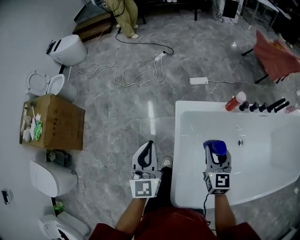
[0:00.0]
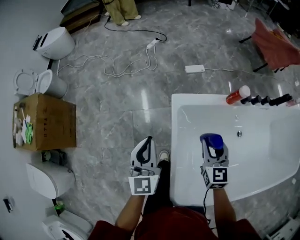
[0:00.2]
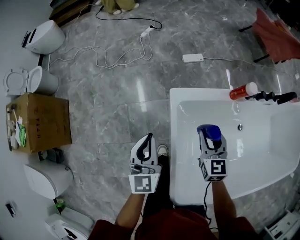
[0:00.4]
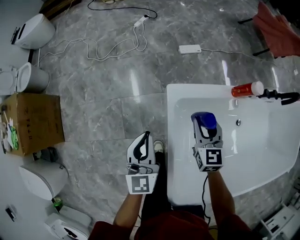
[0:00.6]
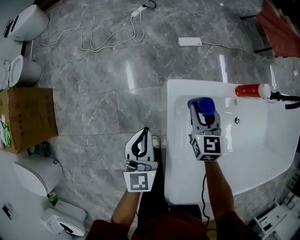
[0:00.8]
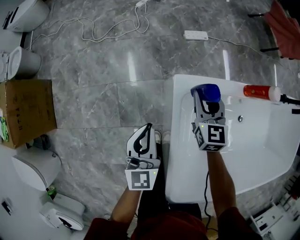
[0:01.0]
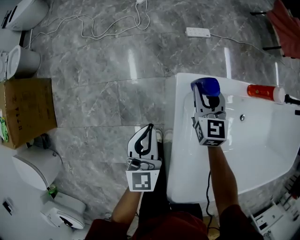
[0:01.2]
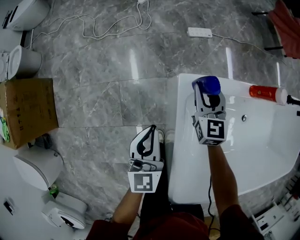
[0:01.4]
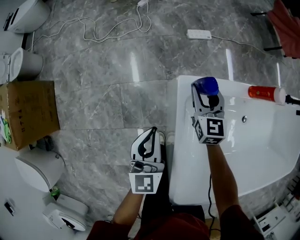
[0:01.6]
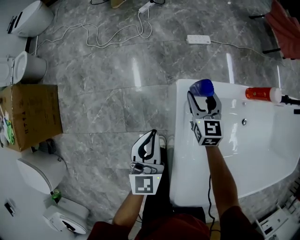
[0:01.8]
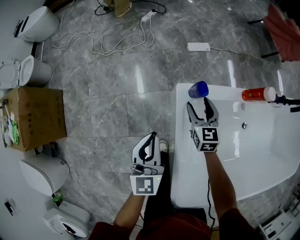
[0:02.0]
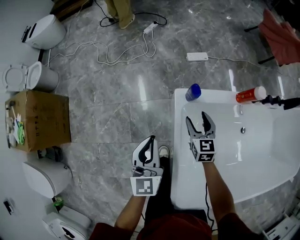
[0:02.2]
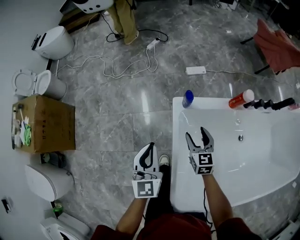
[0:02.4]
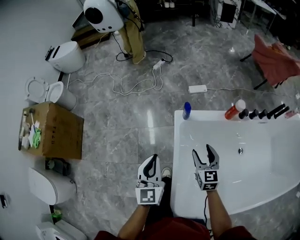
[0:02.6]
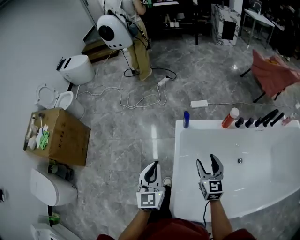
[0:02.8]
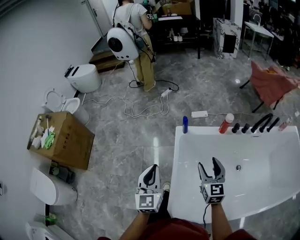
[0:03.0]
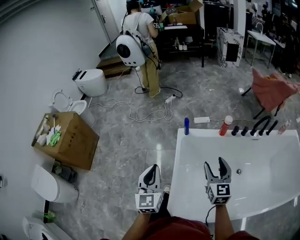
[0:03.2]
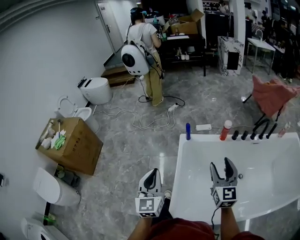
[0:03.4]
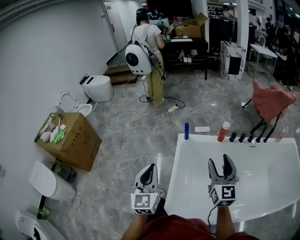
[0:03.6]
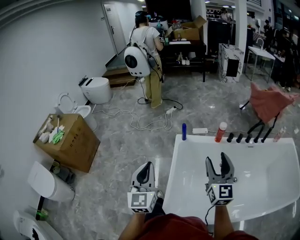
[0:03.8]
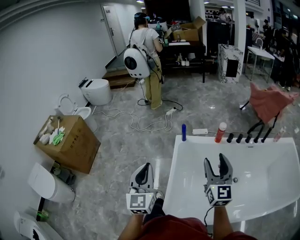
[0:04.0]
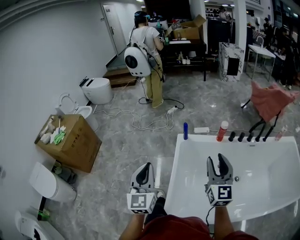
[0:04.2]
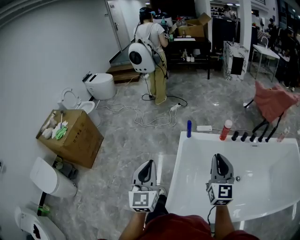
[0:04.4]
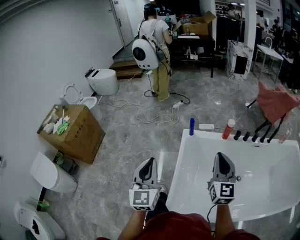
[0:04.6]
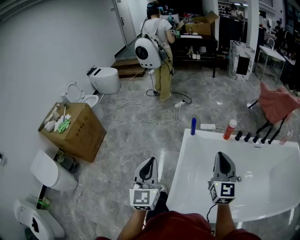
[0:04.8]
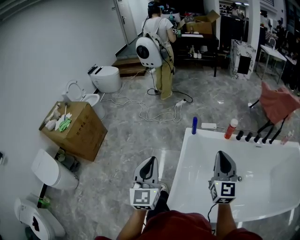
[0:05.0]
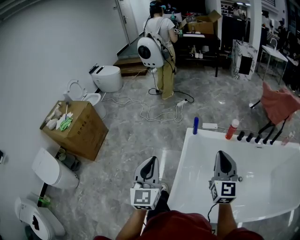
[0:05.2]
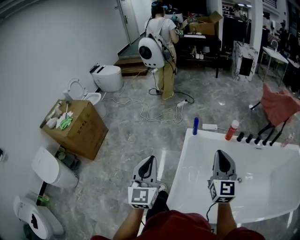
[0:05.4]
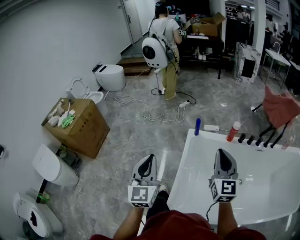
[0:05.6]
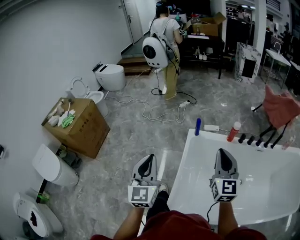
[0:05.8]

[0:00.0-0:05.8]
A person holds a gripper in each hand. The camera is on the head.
0:00.0 to 0:01.4: The left gripper moves downward and forward, roughly 30 cm. The right gripper heads forward and downward, covering about 35 cm.
0:01.4 to 0:02.8: The left gripper moves upward and backward, roughly 30 cm, while the right gripper travels backward and upward by roughly 35 cm, and opens up.
0:02.8 to 0:04.4: The right gripper moves upward and backward, some 25 cm, changes its angle by roughly 20 degrees, and closes; the left gripper shifts about 25 cm backward and upward.
0:04.4 to 0:05.8: There are only small adjustments of the grippers.

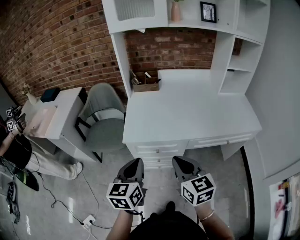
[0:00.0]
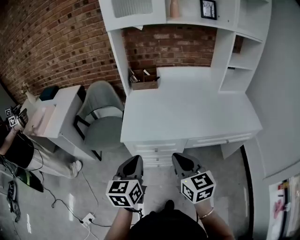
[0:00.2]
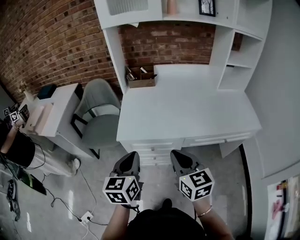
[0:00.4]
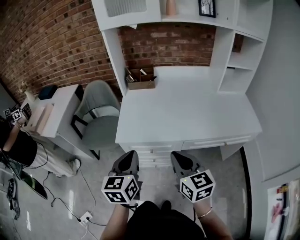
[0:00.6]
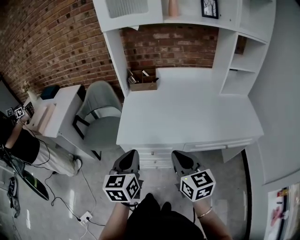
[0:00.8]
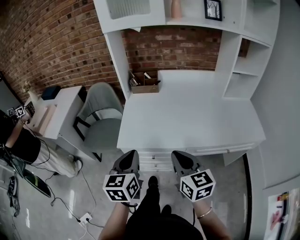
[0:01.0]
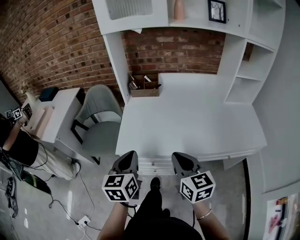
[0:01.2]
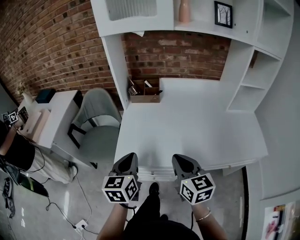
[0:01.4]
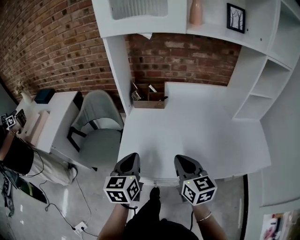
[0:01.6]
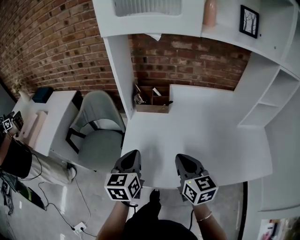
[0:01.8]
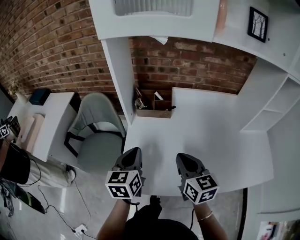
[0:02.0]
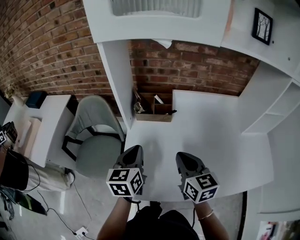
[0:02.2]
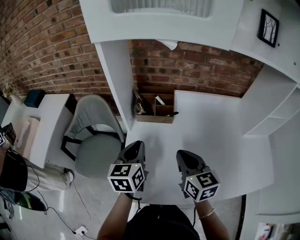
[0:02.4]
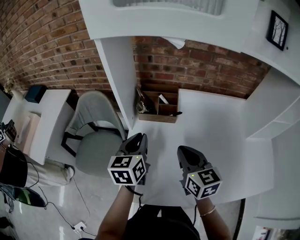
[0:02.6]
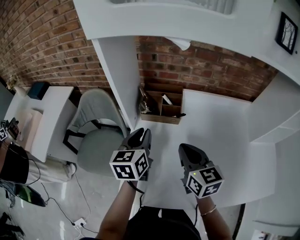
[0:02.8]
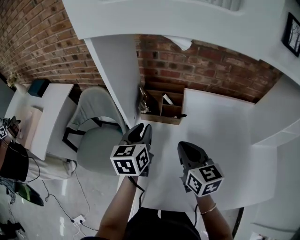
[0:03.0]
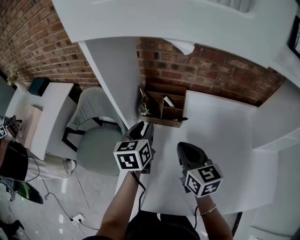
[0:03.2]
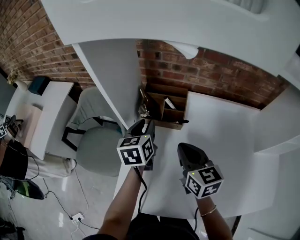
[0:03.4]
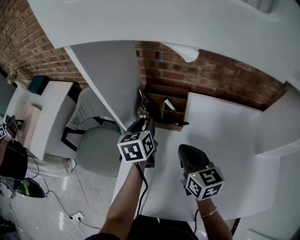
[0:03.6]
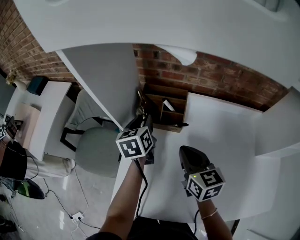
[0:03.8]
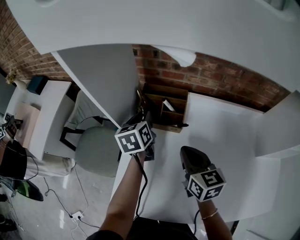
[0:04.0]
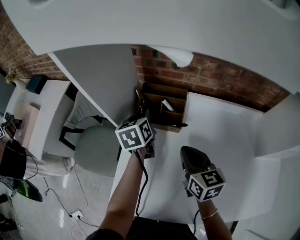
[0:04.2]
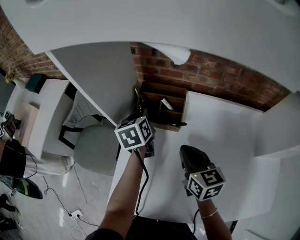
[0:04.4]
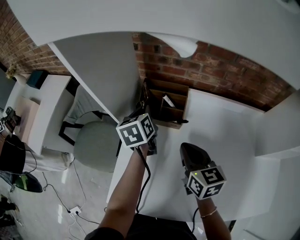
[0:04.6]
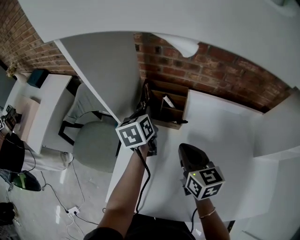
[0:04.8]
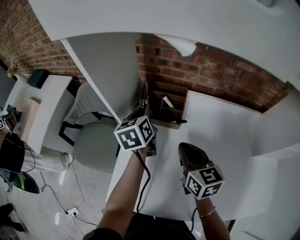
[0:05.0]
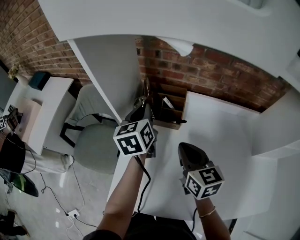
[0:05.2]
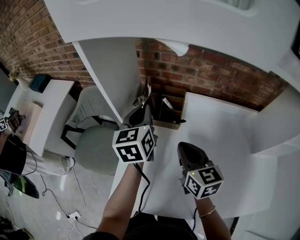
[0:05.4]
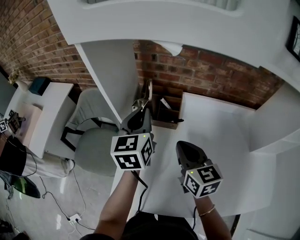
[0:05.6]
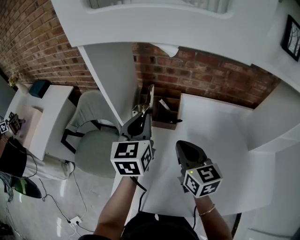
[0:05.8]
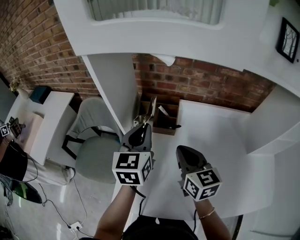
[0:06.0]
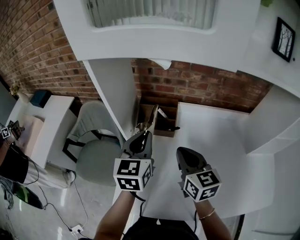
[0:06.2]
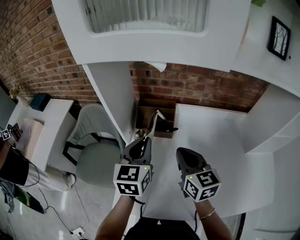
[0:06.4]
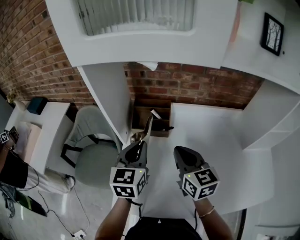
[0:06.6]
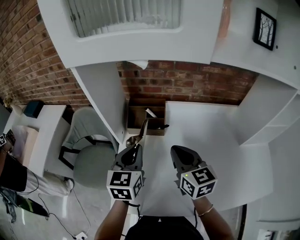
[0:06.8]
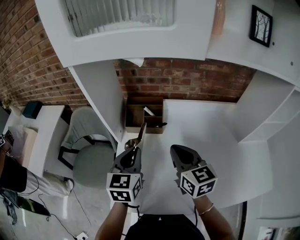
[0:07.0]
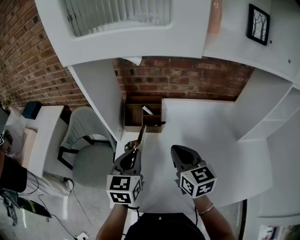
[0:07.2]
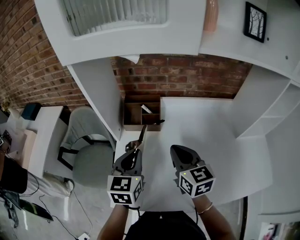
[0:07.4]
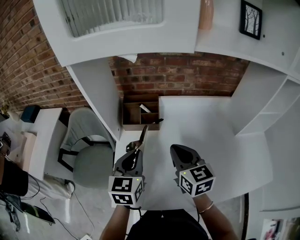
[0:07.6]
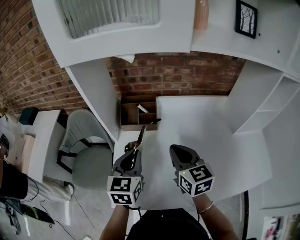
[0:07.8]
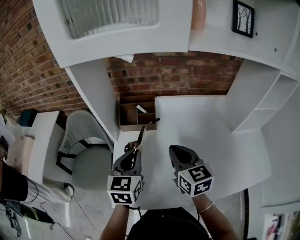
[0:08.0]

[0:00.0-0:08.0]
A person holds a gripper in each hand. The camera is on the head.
0:00.0 to 0:01.6: Both grippers move forward, about 25 cm.
0:01.6 to 0:03.2: The grippers both shift forward by approximately 30 cm. The left gripper opens.
0:03.2 to 0:04.8: The left gripper moves forward, approximately 10 cm.
0:04.8 to 0:06.4: The right gripper travels upward by roughly 5 cm. The left gripper travels backward and upward by roughly 20 cm, and changes its angle by some 30 degrees.
0:06.4 to 0:08.0: Both grippers move backward, some 5 cm.

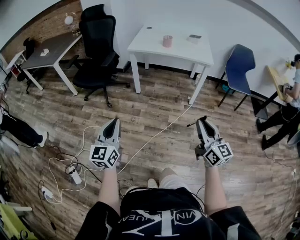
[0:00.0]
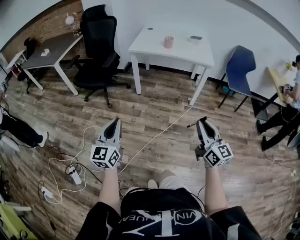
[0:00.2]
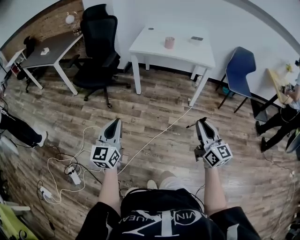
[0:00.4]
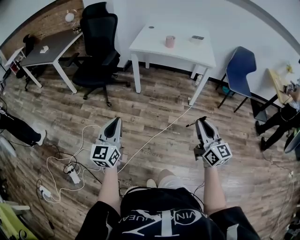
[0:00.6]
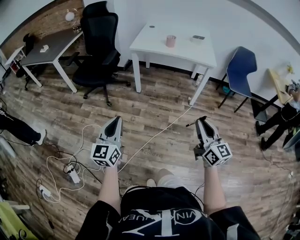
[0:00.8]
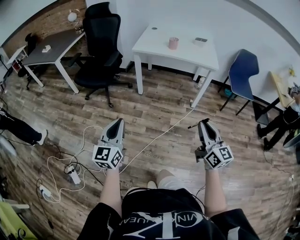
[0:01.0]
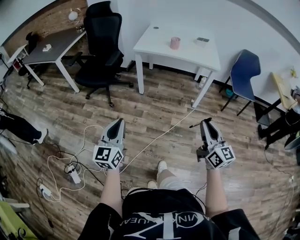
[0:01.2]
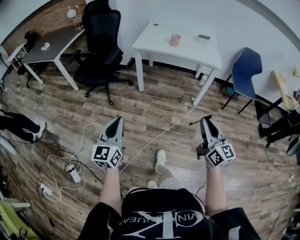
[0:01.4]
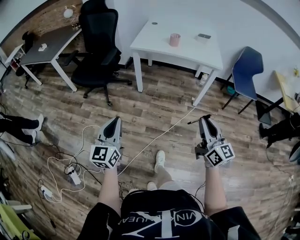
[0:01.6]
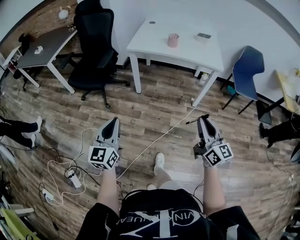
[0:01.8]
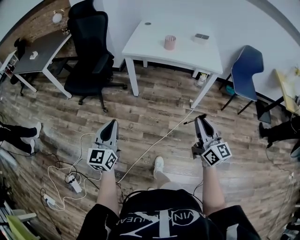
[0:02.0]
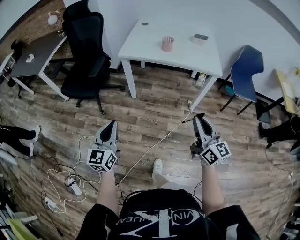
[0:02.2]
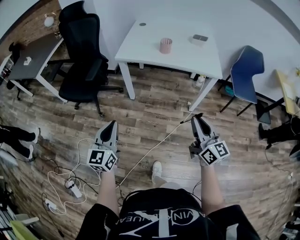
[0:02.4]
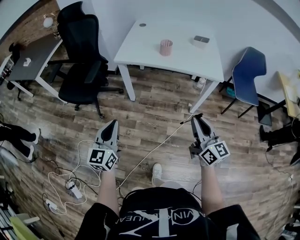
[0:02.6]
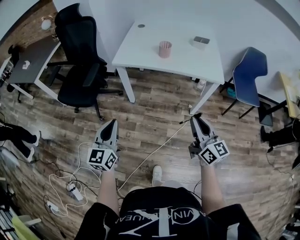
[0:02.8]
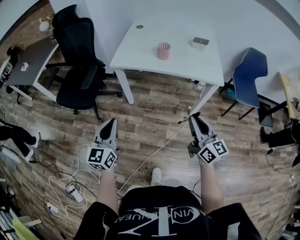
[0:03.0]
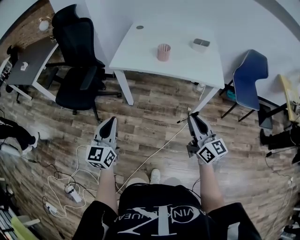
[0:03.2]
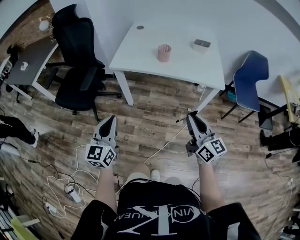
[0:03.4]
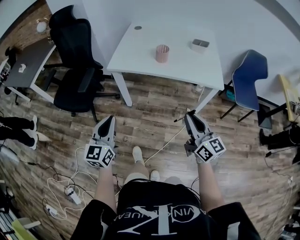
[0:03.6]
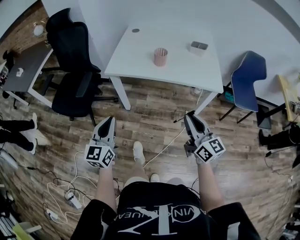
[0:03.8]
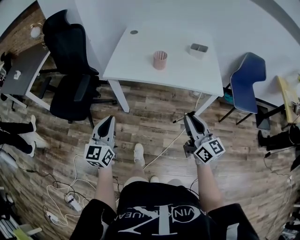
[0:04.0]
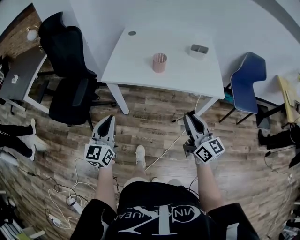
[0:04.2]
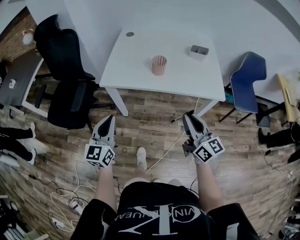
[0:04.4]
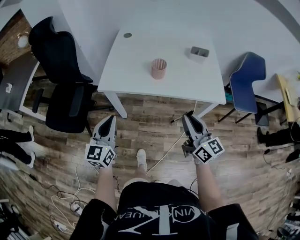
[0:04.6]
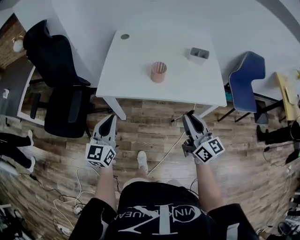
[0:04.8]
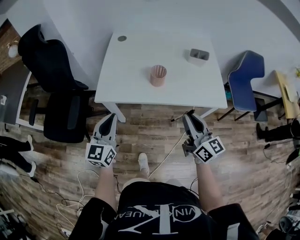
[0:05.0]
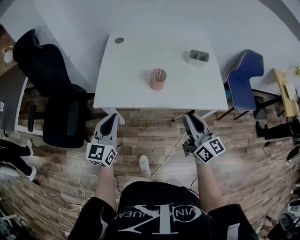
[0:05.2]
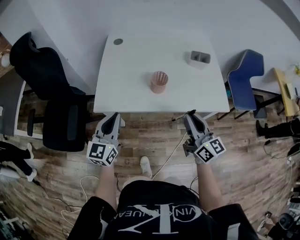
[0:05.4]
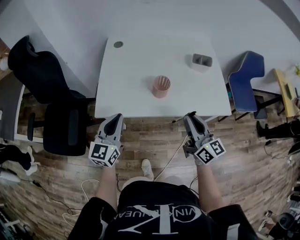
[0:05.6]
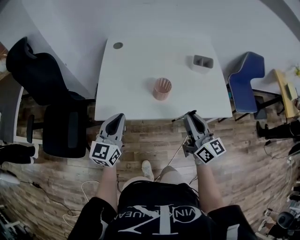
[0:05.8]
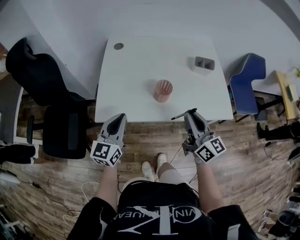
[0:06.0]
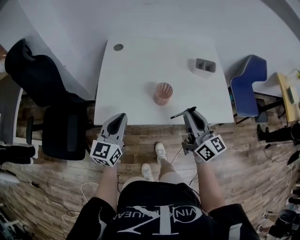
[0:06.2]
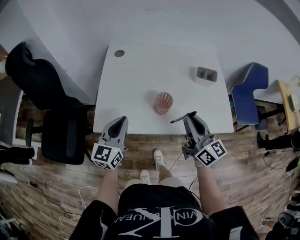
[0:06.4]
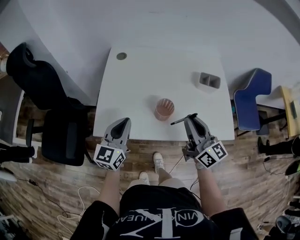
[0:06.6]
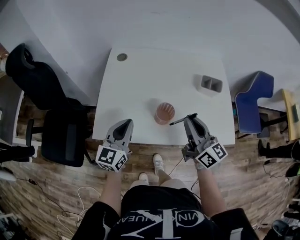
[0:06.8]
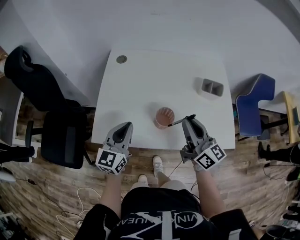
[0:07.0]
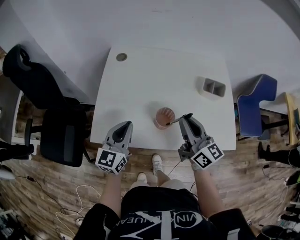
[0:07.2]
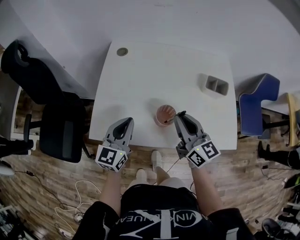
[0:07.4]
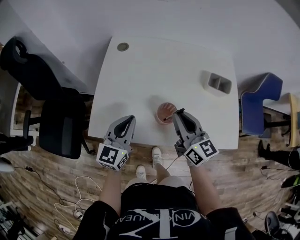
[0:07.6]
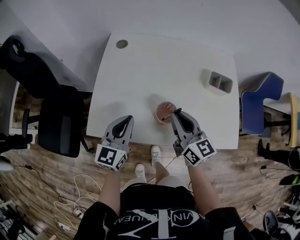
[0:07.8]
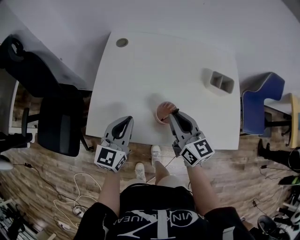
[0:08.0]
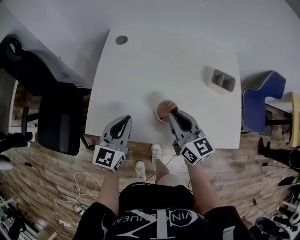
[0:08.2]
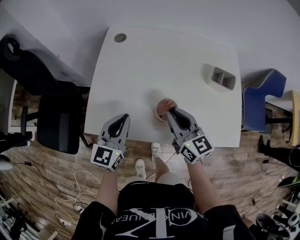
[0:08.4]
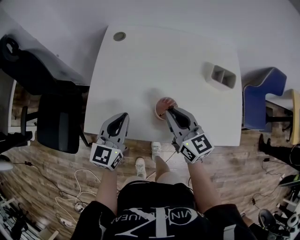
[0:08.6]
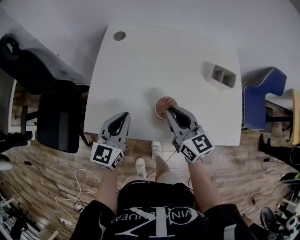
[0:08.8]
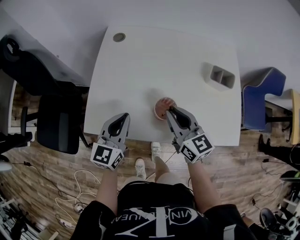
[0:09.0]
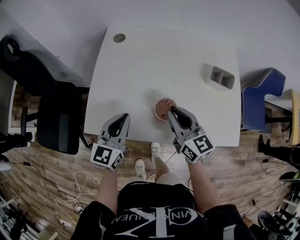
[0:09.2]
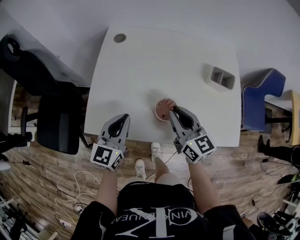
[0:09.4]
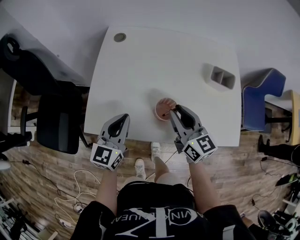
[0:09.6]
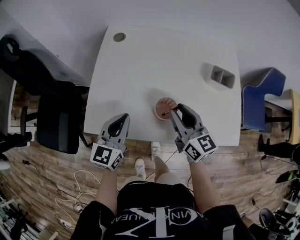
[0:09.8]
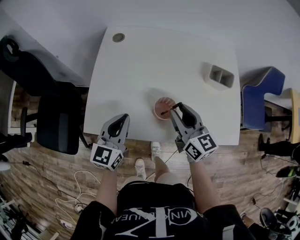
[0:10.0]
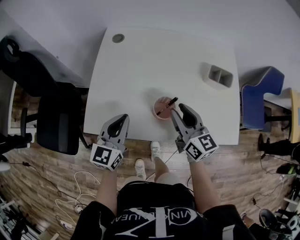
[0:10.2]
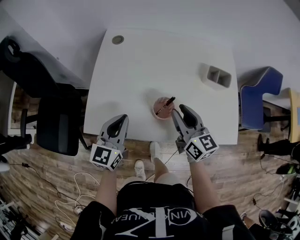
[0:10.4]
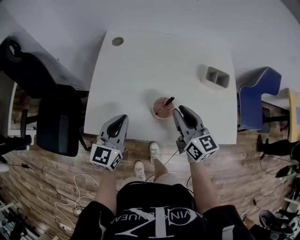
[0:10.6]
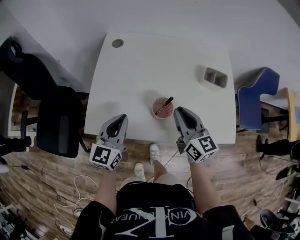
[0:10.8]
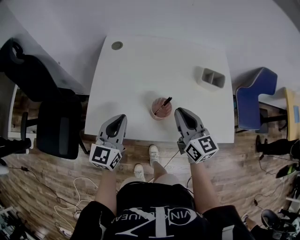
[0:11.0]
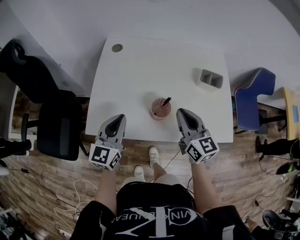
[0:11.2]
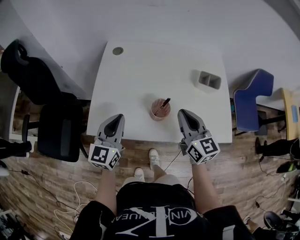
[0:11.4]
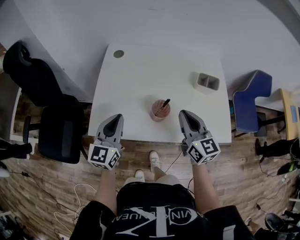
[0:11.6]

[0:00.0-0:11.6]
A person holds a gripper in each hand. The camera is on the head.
0:00.0 to 0:01.4: Both grippers travel together forward, approximately 5 cm.
0:01.4 to 0:02.8: Both grippers travel together forward, about 30 cm.
0:02.8 to 0:04.4: Both grippers move forward, some 20 cm.
0:04.4 to 0:05.8: Both grippers move forward, some 20 cm.
0:05.8 to 0:07.2: Both grippers travel together forward, roughly 15 cm.
0:07.2 to 0:08.8: The right gripper shifts some 10 cm downward and to the left.
0:08.8 to 0:10.2: The right gripper opens up.
0:10.2 to 0:11.6: Both grippers move upward, some 5 cm. The right gripper closes up.
